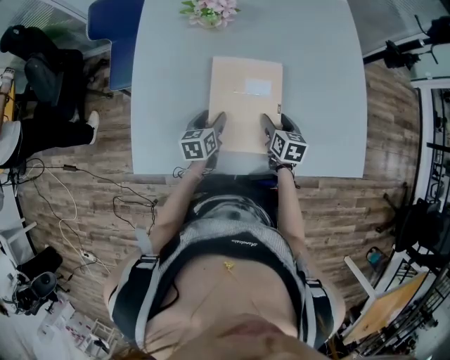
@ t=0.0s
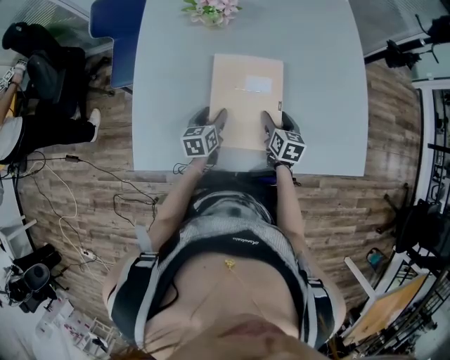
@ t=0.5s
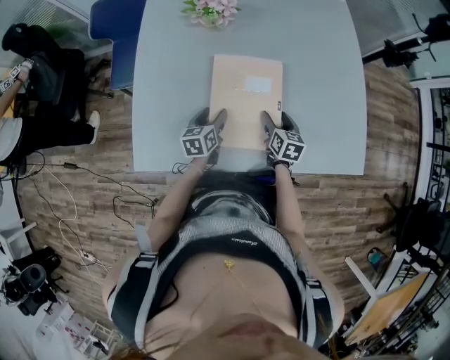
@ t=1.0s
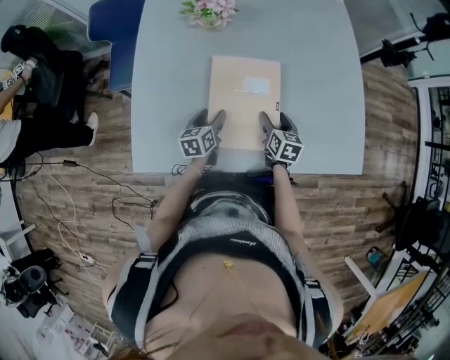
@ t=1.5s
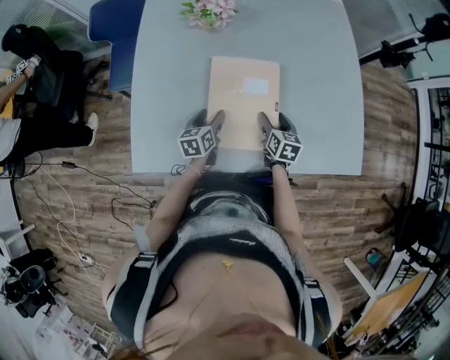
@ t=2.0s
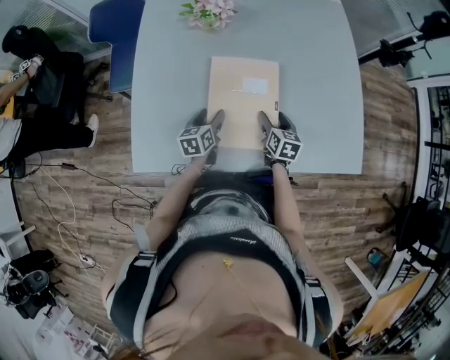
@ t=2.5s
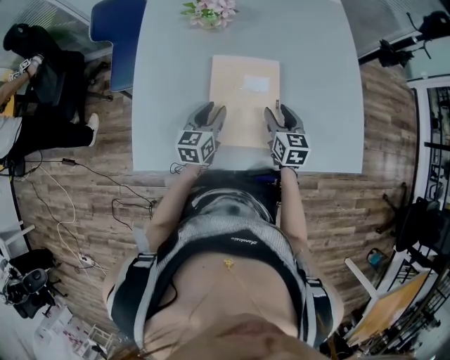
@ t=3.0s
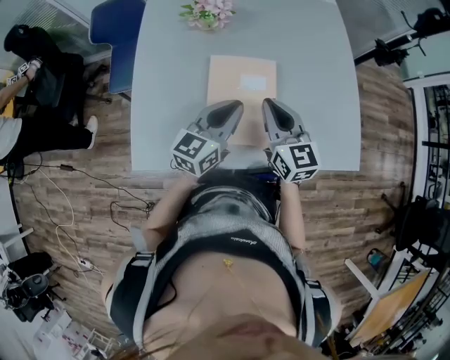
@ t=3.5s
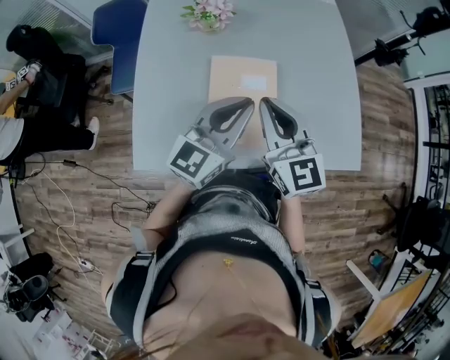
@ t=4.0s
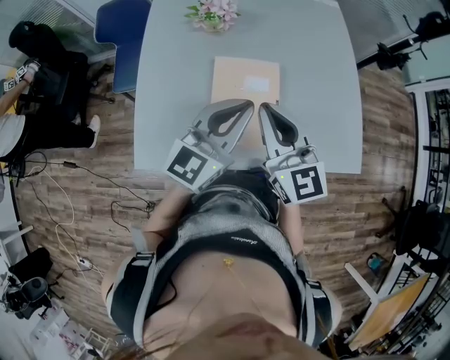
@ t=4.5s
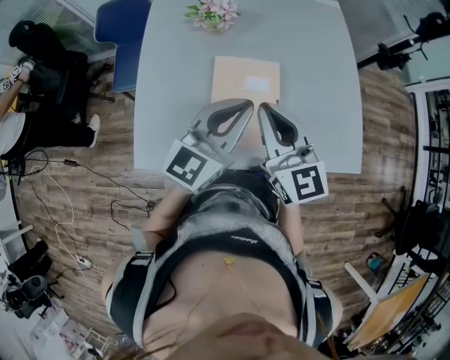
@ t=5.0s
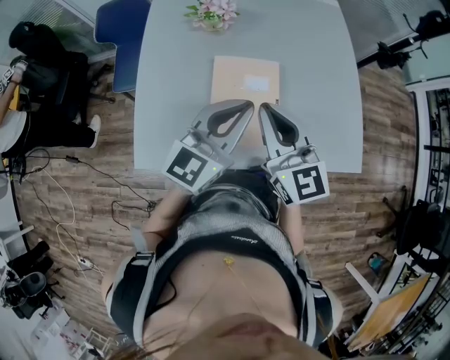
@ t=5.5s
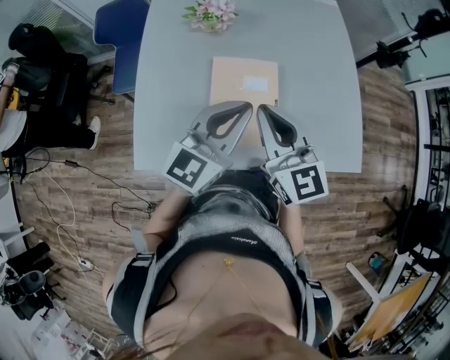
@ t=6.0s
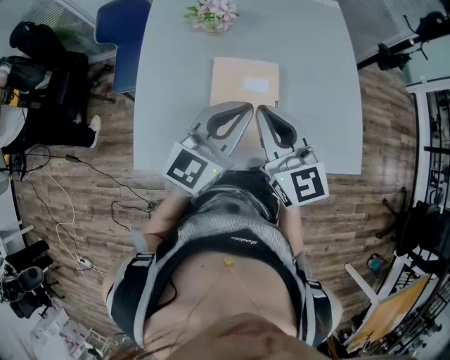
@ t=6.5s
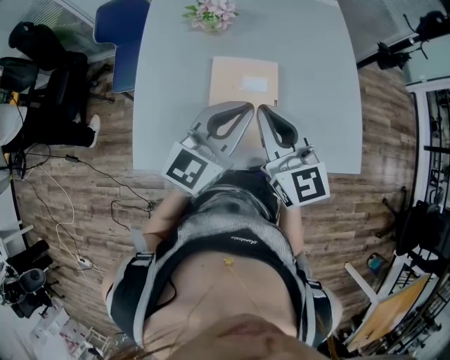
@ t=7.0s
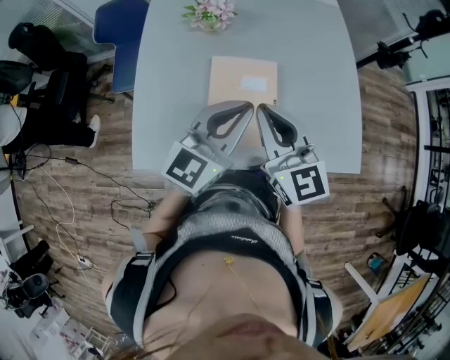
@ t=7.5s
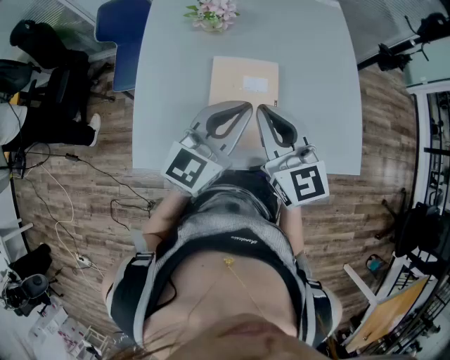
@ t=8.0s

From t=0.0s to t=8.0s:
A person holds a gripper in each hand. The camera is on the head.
From t=0.0s to t=2.0s: The grippers make only small movements.
From t=2.0s to t=4.0s: Both grippers move upward, some 30 cm. The right gripper angles its fingers upward, by approximately 30 degrees, and closes. The left gripper points its fingers about 40 degrees further upward, and closes its fingers.
From t=4.0s to t=6.0s: The grippers stay close to where they were, moving slightly.
From t=6.0s to t=8.0s: The two grippers keep their place.

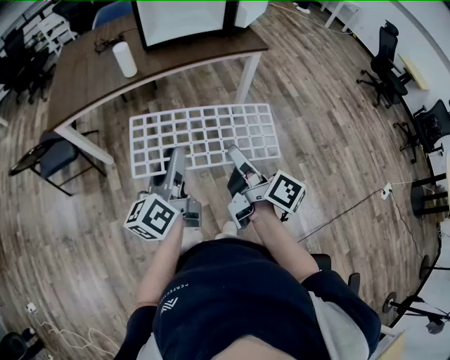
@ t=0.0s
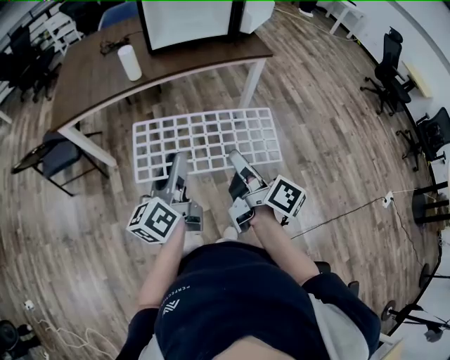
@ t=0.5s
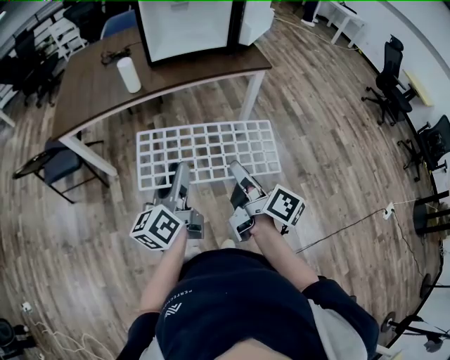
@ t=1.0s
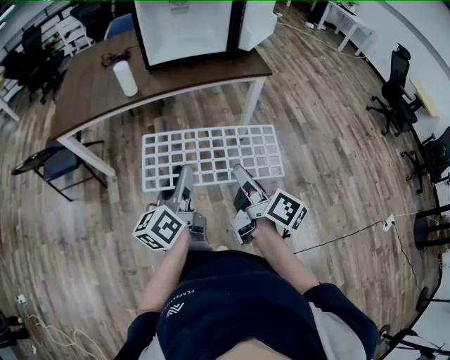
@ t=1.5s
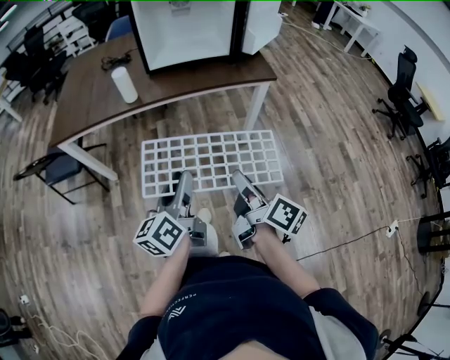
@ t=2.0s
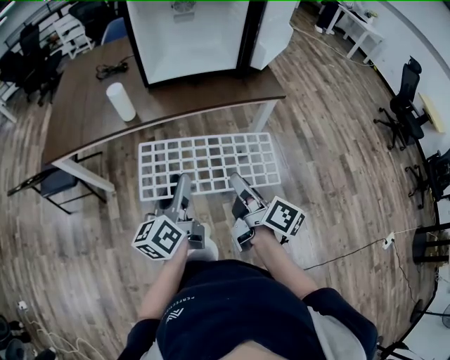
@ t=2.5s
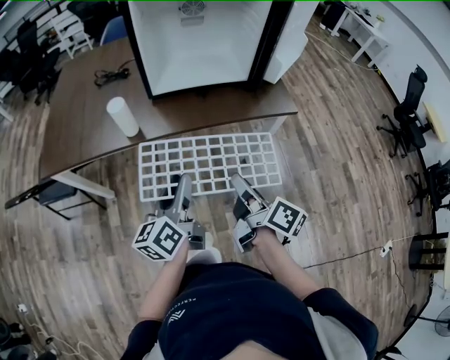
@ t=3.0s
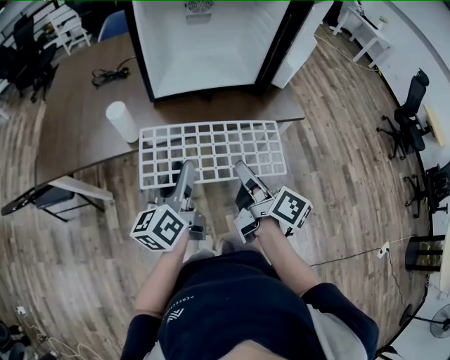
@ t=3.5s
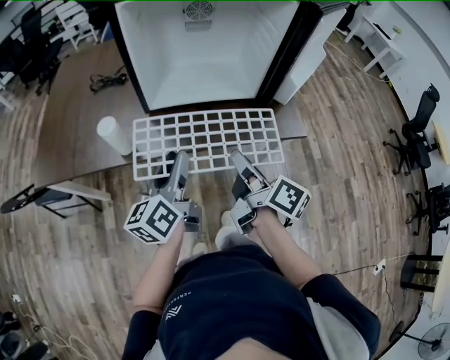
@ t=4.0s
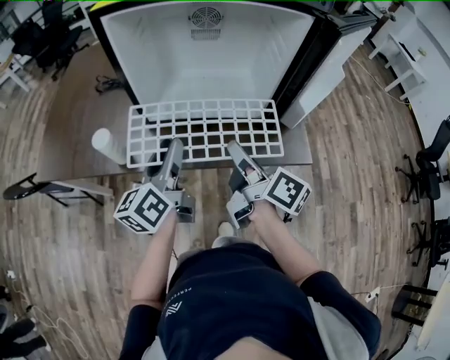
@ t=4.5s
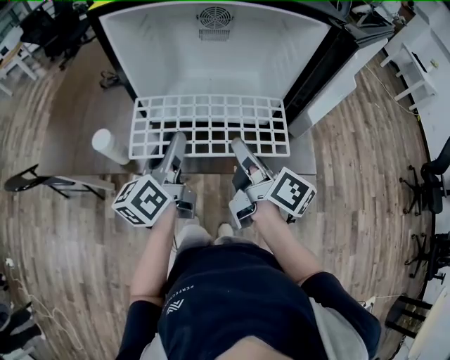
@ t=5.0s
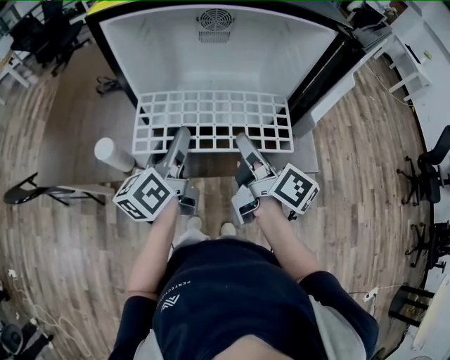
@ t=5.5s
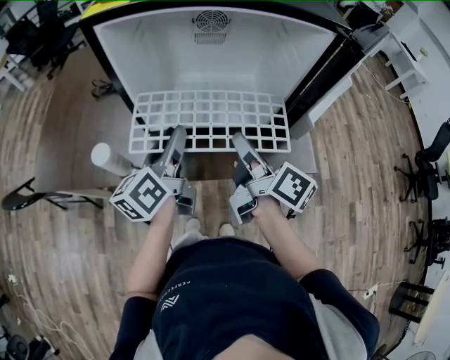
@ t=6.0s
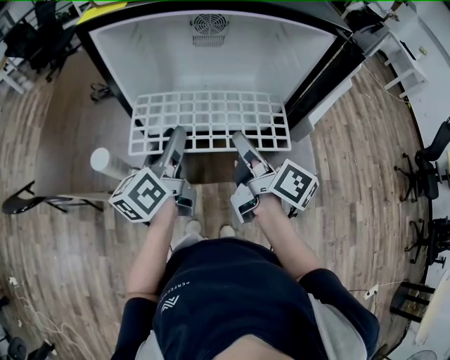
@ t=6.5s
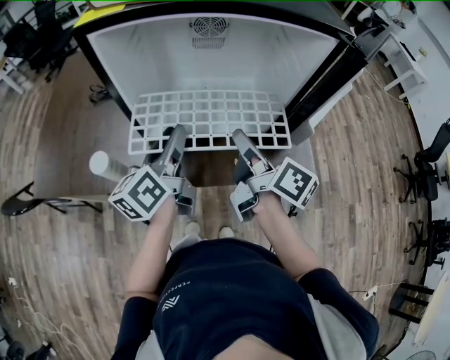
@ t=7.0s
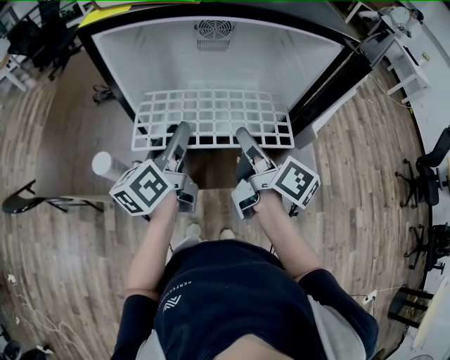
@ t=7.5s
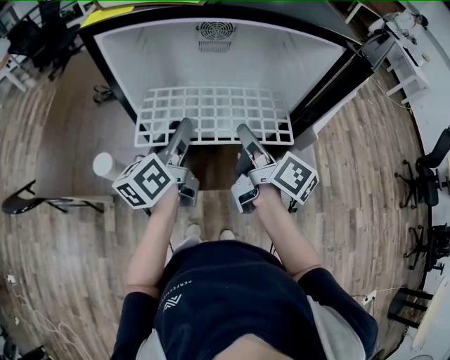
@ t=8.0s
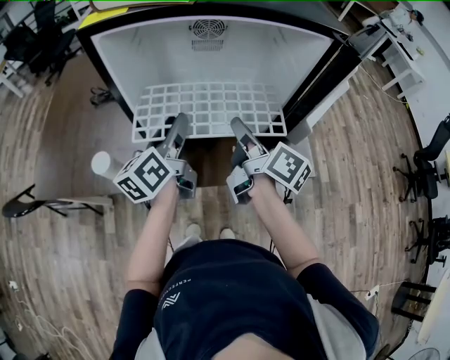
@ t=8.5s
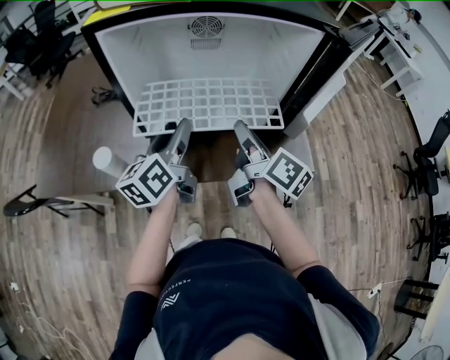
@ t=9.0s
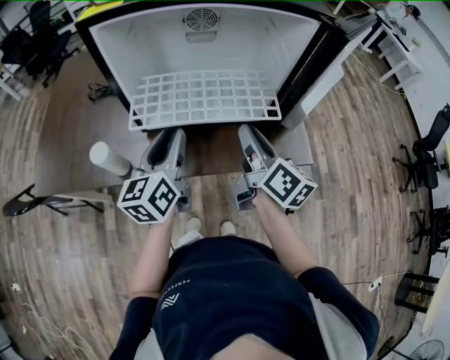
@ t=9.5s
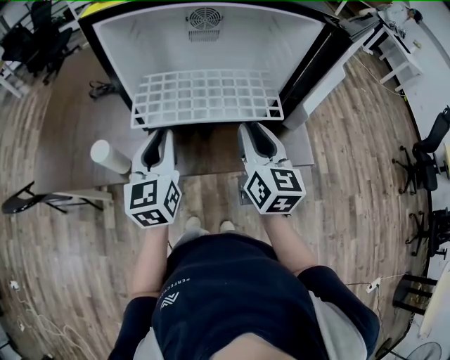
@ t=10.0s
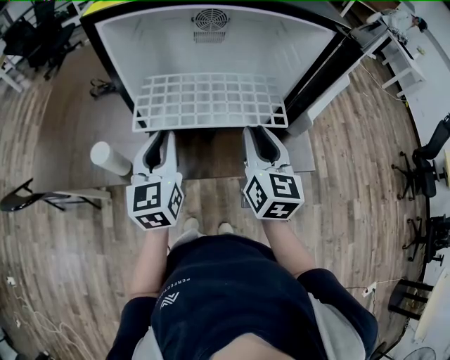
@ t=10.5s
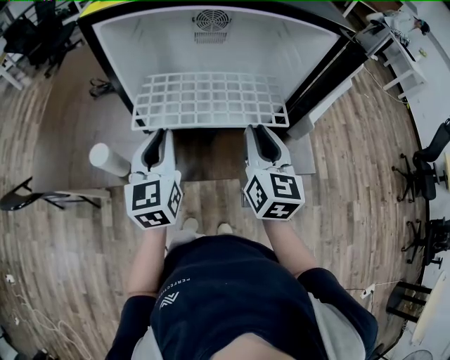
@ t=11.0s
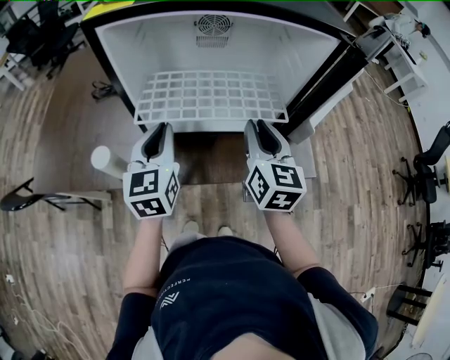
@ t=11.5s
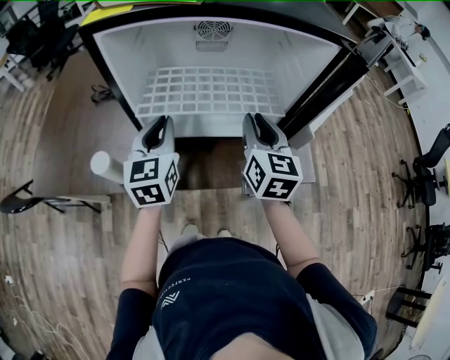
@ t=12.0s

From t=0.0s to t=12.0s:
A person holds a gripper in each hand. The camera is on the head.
From t=0.0s to t=2.0s: The two grippers go roughly 10 cm forward and to the right.
From t=2.0s to t=4.0s: The grippers both shift forward by about 35 cm.
From t=4.0s to t=6.0s: Both grippers travel together forward, some 15 cm.
From t=6.0s to t=8.0s: The grippers both shift forward by approximately 5 cm.
From t=8.0s to t=10.0s: Both grippers travel together backward, roughly 5 cm. The right gripper rotates around the line of its fingers by approximately 50 degrees, counterclockwise from behind; the left gripper swivels roughly 40 degrees, and closes its fingers.
From t=10.0s to t=12.0s: Both grippers travel together forward, some 10 cm.

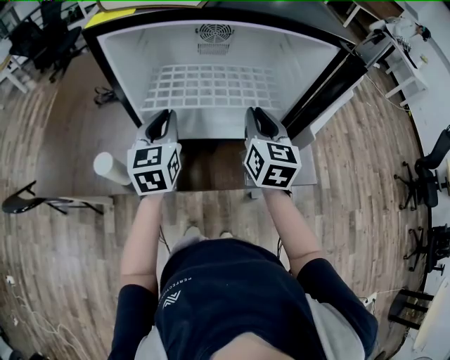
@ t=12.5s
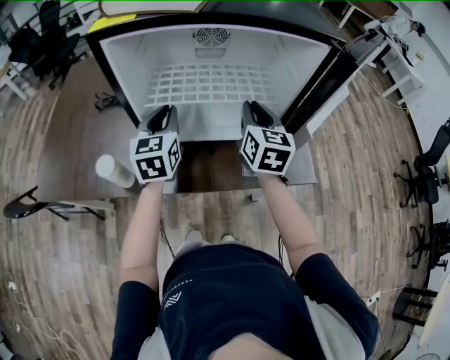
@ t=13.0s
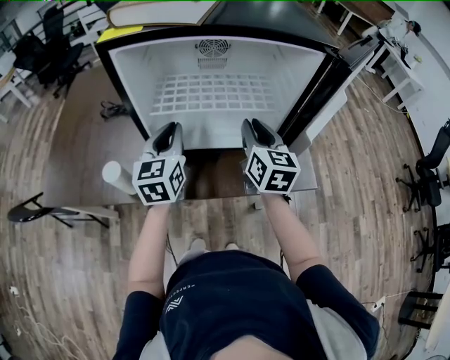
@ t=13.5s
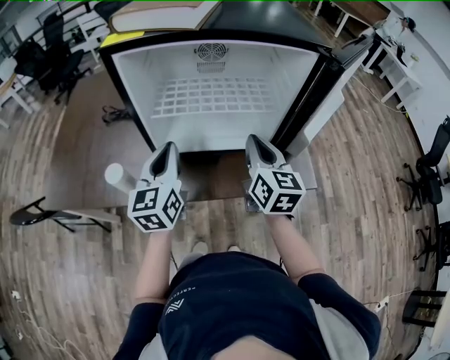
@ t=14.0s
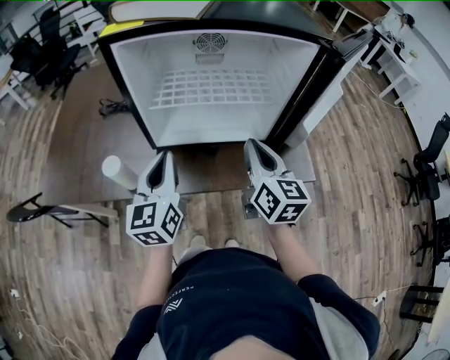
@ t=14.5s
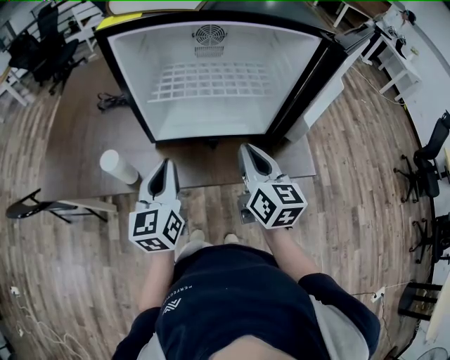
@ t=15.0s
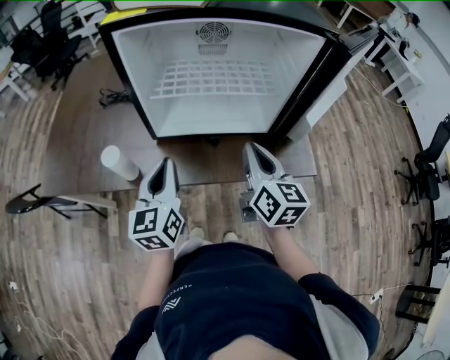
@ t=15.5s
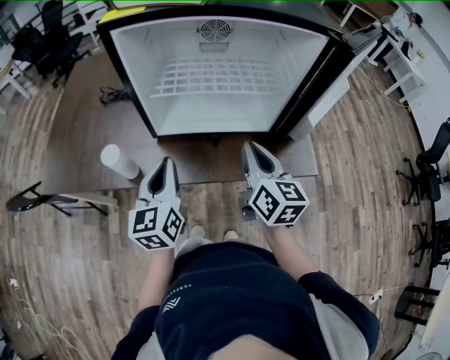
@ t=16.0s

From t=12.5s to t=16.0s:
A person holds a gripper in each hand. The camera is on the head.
From t=12.5s to t=14.5s: The grippers both shift backward by approximately 10 cm.
From t=14.5s to t=16.0s: There are only small adjustments of the grippers.

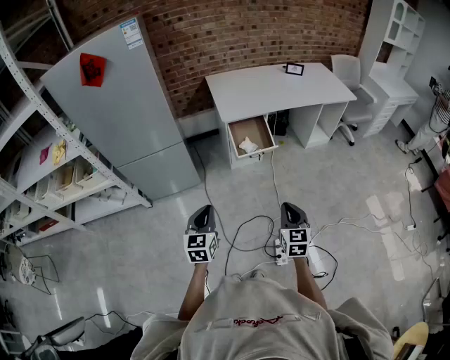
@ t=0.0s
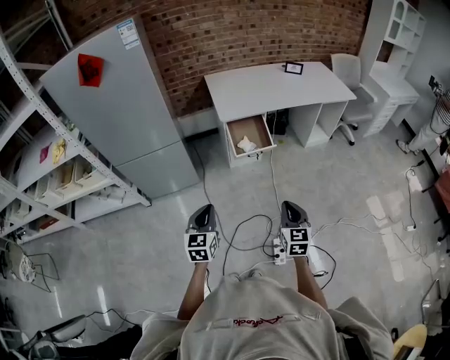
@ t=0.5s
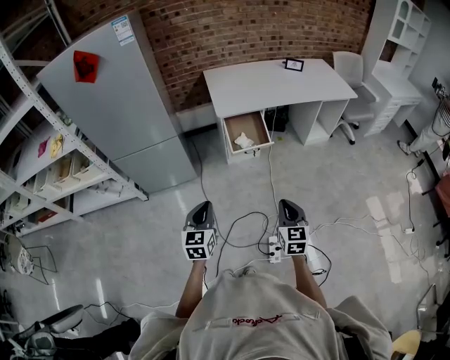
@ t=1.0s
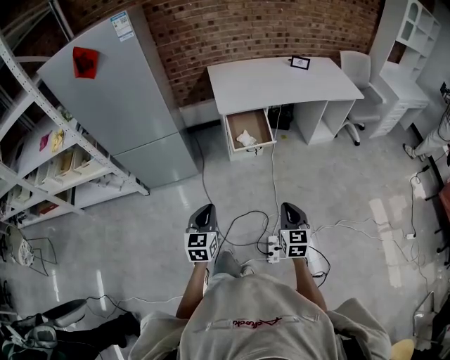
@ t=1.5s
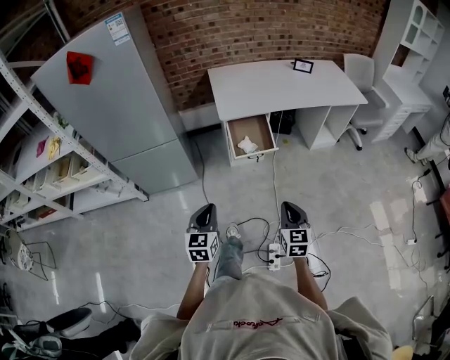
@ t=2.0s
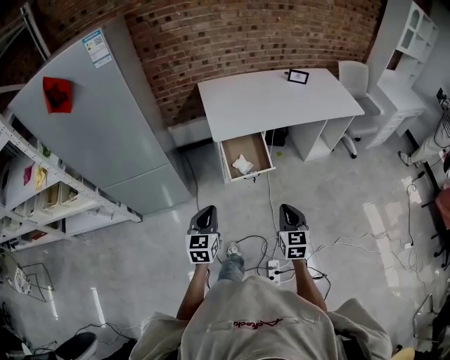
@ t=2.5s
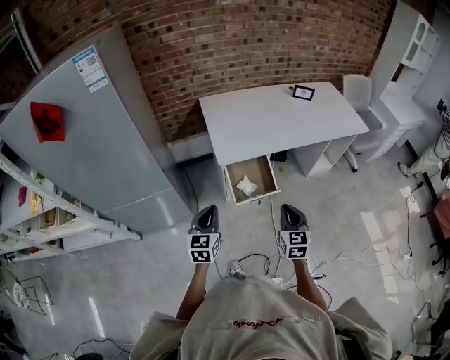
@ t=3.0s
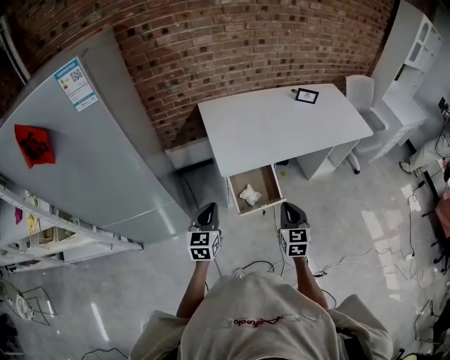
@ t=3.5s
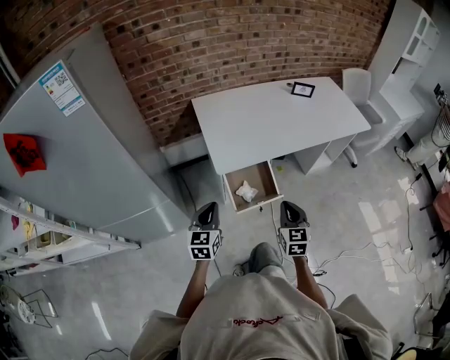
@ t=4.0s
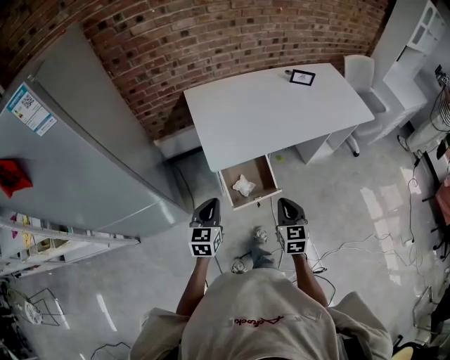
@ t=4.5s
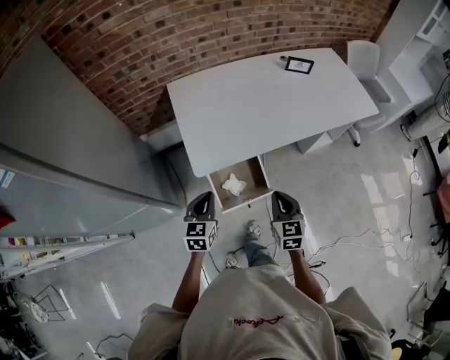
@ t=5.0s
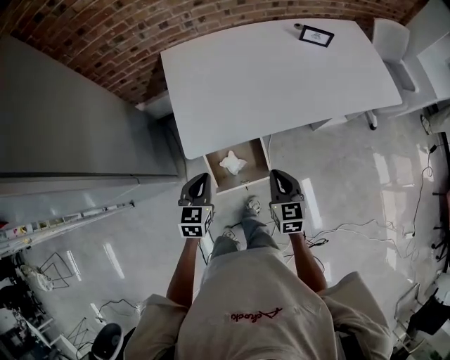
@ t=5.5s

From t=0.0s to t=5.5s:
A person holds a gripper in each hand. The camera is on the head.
From t=0.0s to t=2.0s: The left gripper is displaced to the right and forward by approximately 10 cm; the right gripper travels forward and to the right by approximately 10 cm.
From t=2.0s to t=3.5s: Both grippers move forward, roughly 35 cm.
From t=3.5s to t=5.5s: The right gripper shifts some 20 cm forward, downward and to the right. The left gripper heads forward, to the right and downward, covering some 20 cm.
